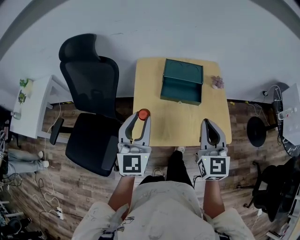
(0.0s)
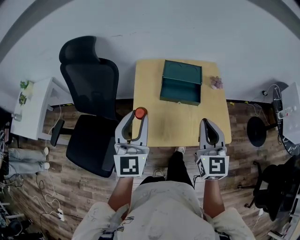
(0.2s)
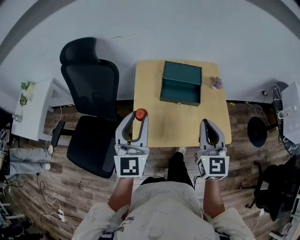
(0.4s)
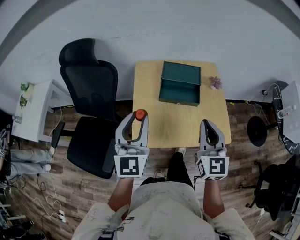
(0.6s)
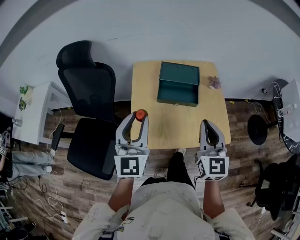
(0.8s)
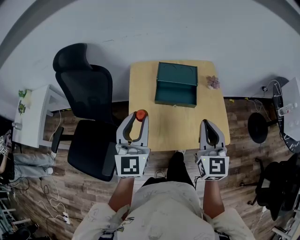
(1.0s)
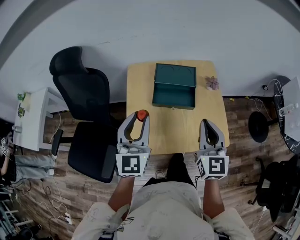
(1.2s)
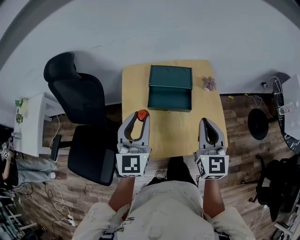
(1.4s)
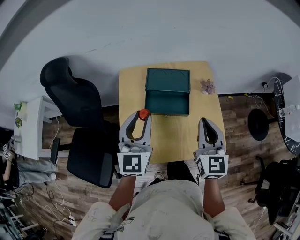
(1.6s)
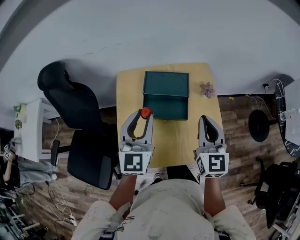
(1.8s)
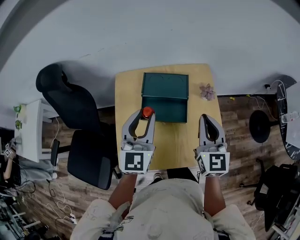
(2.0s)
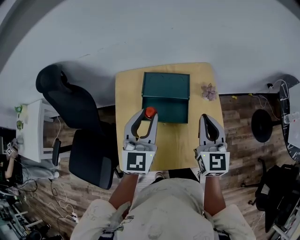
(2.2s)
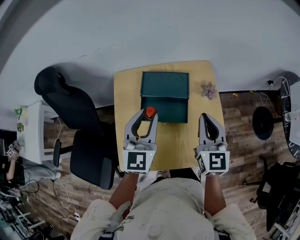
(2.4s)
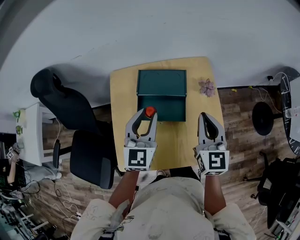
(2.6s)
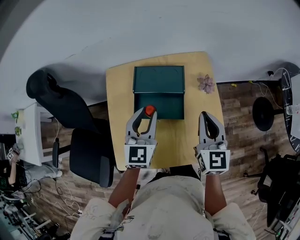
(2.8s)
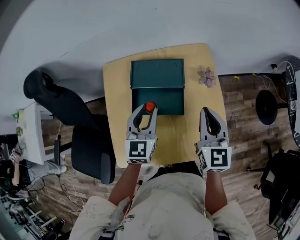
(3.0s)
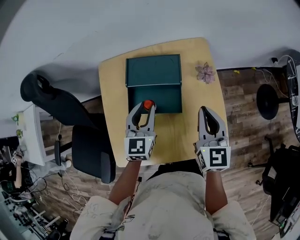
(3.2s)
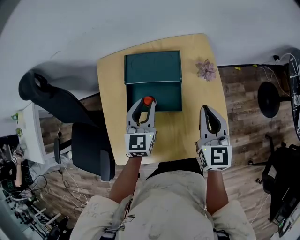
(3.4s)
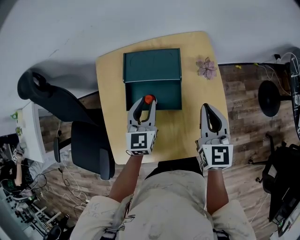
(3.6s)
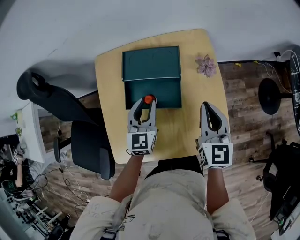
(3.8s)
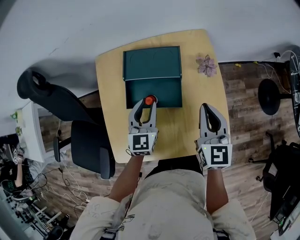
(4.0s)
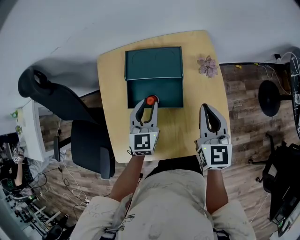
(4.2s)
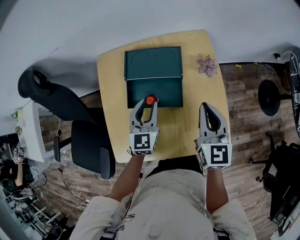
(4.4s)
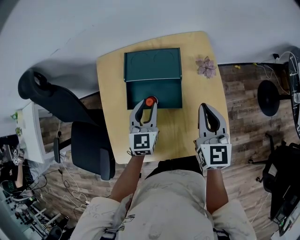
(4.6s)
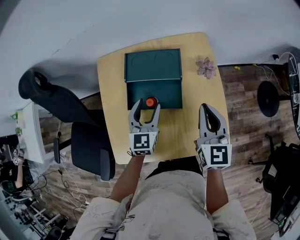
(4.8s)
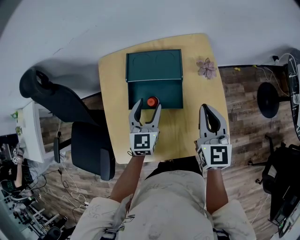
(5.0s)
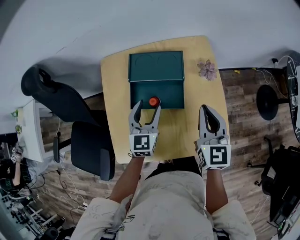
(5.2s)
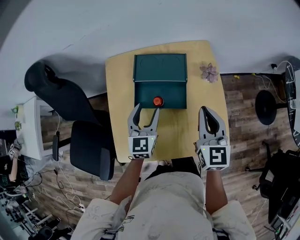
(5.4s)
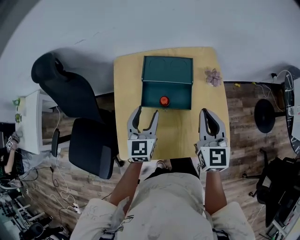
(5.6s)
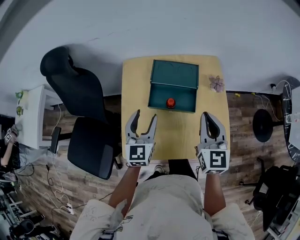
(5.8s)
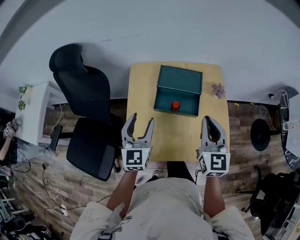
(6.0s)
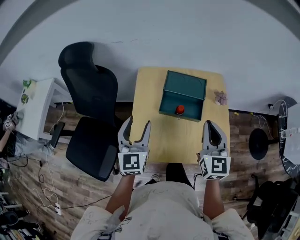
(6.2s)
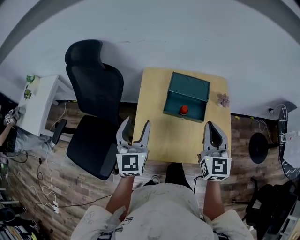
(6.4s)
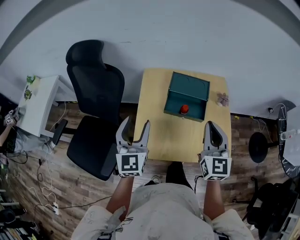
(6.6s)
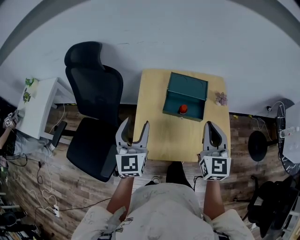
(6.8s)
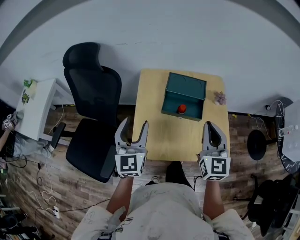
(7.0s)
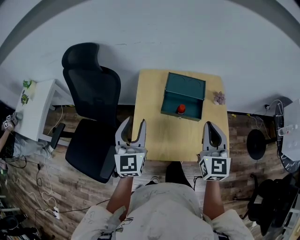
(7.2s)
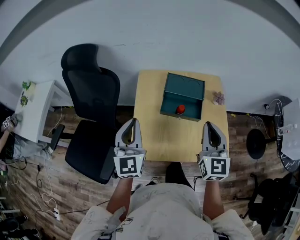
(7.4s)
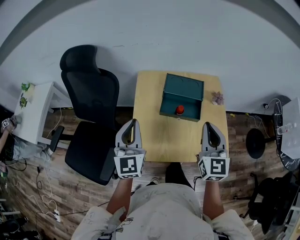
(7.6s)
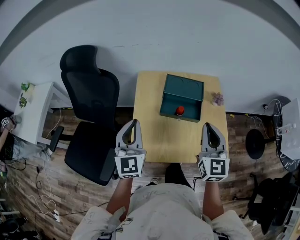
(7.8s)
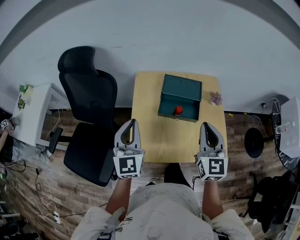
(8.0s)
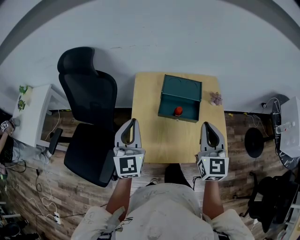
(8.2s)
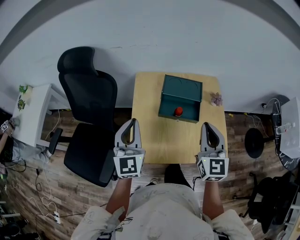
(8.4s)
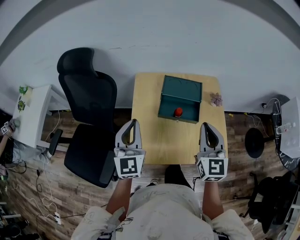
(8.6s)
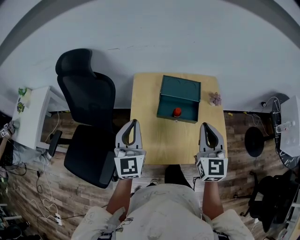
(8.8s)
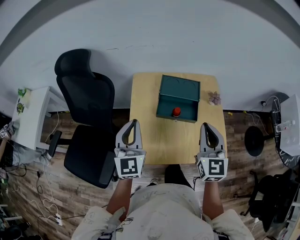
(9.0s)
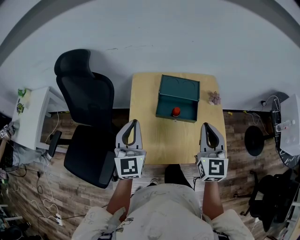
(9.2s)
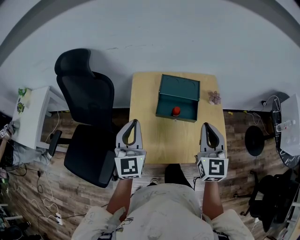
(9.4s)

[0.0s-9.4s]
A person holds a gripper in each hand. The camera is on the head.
0.0s to 1.6s: Both grippers travel together forward and to the right, roughly 15 cm.
1.6s to 3.2s: The grippers both shift downward, forward and to the right by roughly 15 cm.
3.2s to 4.8s: The left gripper opens.
4.8s to 6.2s: The right gripper shifts approximately 15 cm upward, to the left and backward. The left gripper goes roughly 25 cm to the left, upward and backward, and changes its angle by some 20 degrees.
6.2s to 7.8s: The left gripper closes up.
7.8s to 9.4s: There are only small adjustments of the grippers.

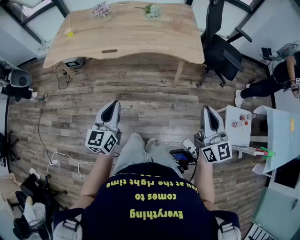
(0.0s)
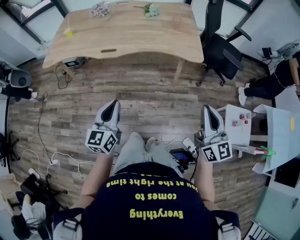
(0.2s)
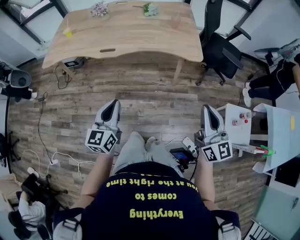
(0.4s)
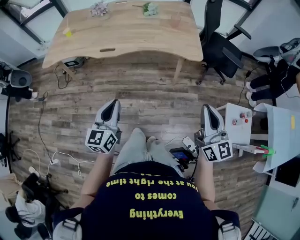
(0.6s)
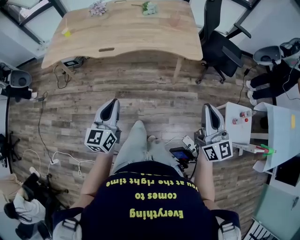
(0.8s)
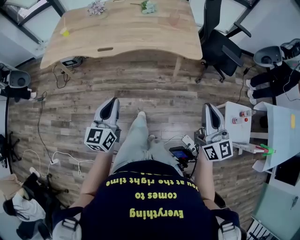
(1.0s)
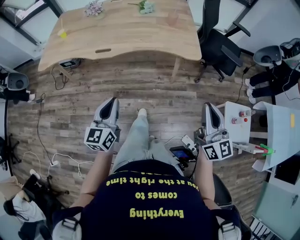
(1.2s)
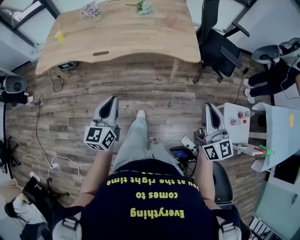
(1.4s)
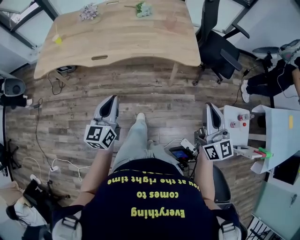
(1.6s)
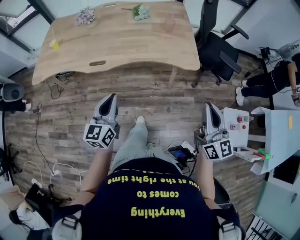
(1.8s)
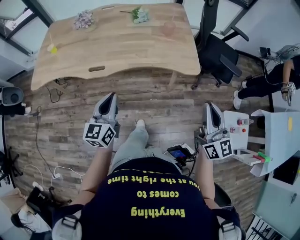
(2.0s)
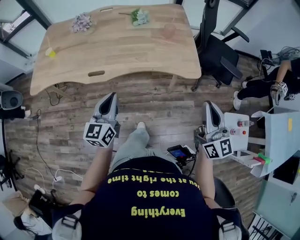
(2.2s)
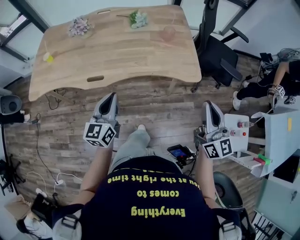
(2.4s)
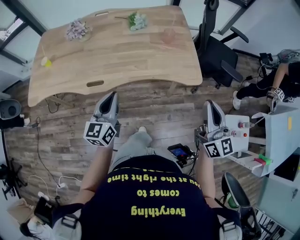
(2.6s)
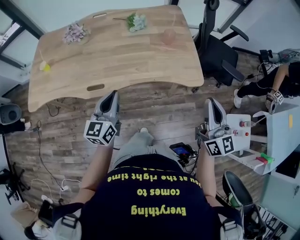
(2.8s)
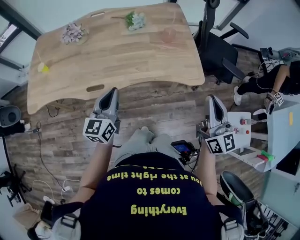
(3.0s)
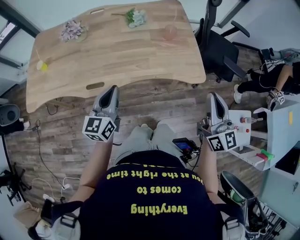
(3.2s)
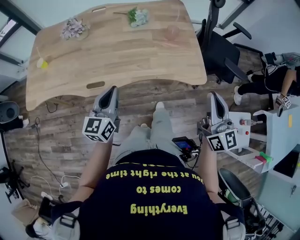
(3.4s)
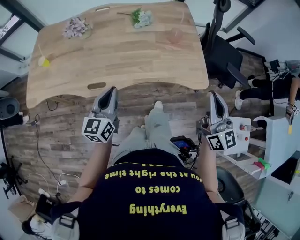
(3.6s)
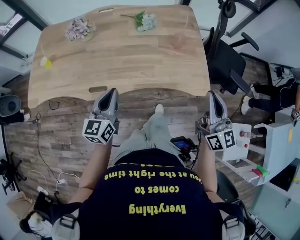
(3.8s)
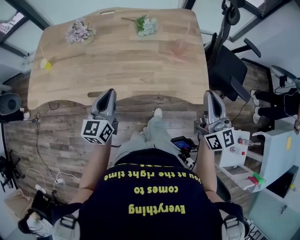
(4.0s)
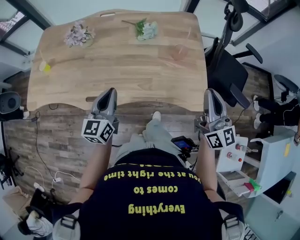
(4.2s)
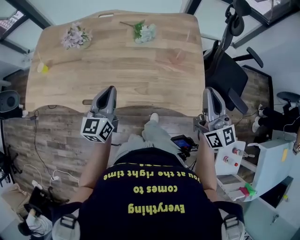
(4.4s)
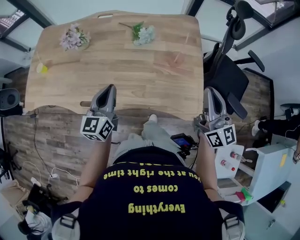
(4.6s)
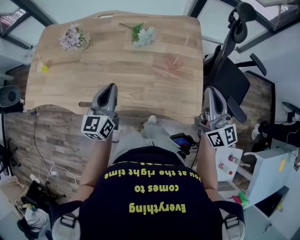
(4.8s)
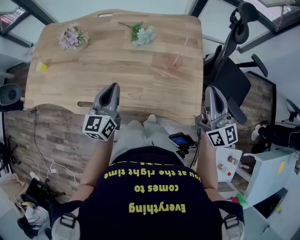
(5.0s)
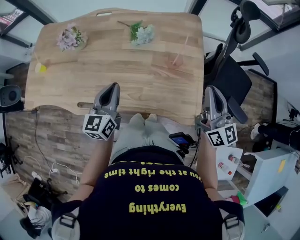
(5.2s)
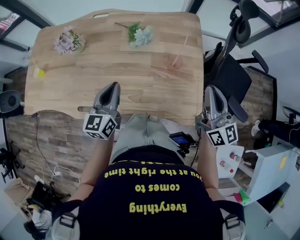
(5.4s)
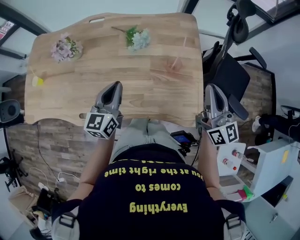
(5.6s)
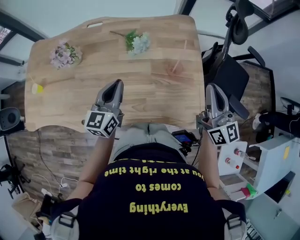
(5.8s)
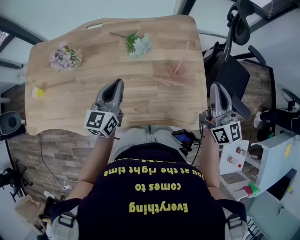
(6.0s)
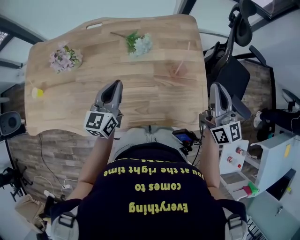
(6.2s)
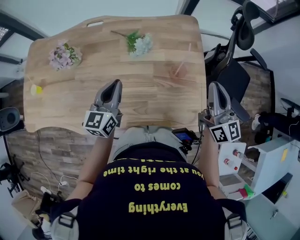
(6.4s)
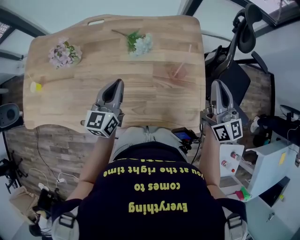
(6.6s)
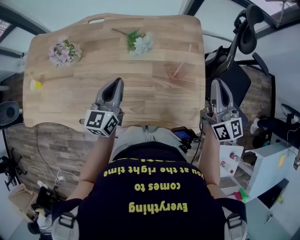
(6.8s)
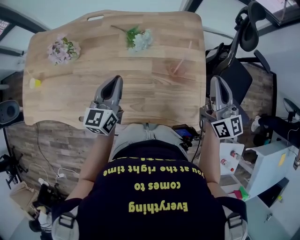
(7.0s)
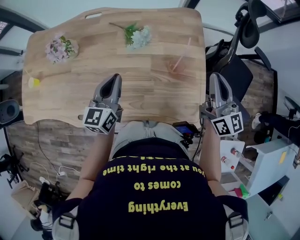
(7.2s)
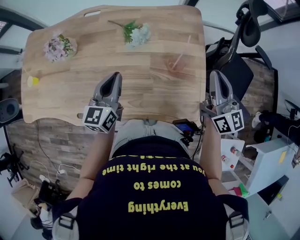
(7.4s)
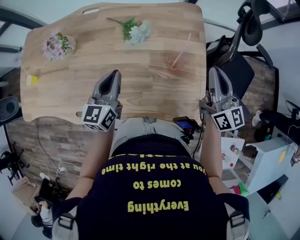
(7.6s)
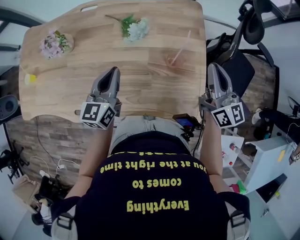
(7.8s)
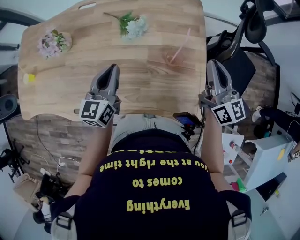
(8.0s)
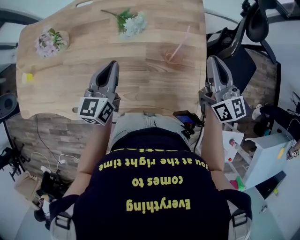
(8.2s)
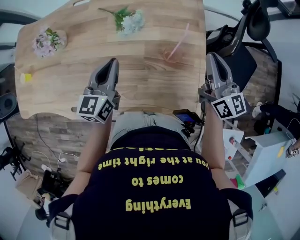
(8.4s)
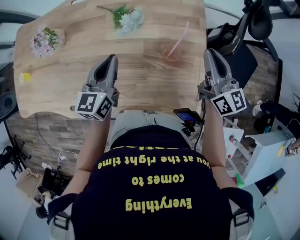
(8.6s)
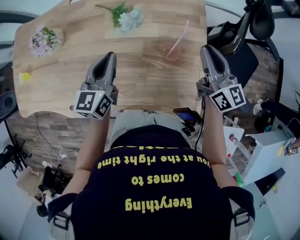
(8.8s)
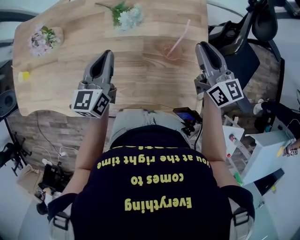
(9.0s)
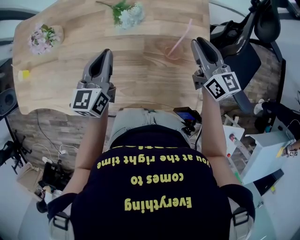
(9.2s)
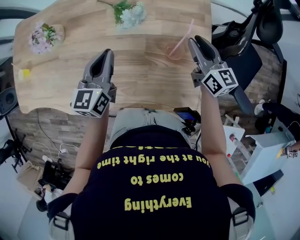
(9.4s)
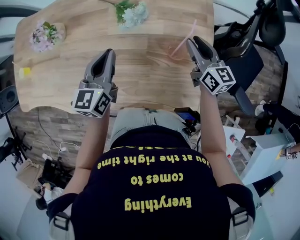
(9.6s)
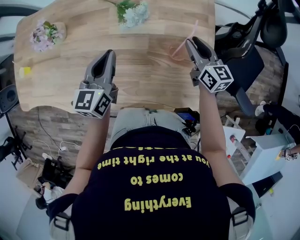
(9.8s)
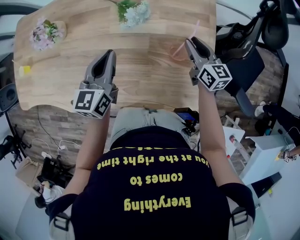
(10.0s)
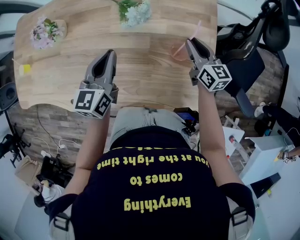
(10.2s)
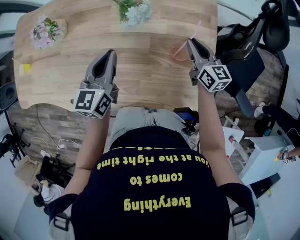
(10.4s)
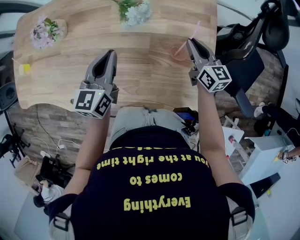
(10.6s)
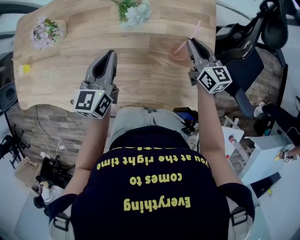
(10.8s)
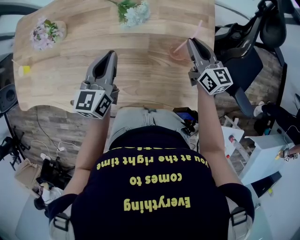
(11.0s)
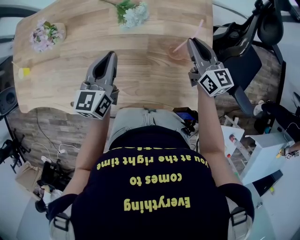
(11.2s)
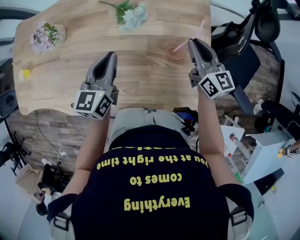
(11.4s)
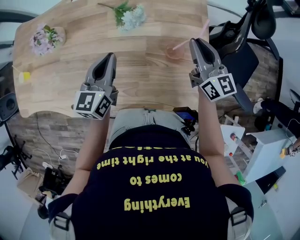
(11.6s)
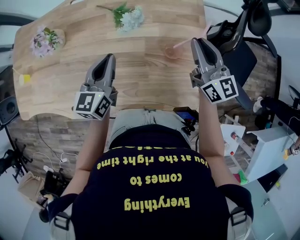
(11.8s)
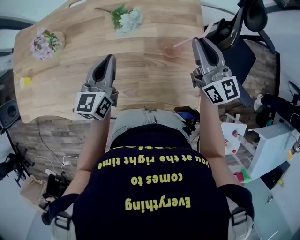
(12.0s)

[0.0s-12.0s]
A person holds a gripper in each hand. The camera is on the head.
0.0s to 1.6s: The two grippers go roughly 10 cm forward.
1.6s to 3.0s: The two grippers go roughly 20 cm forward.
3.0s to 4.4s: The left gripper heads forward, covering about 15 cm; the right gripper is displaced forward by approximately 20 cm.
4.4s to 6.0s: The grippers both shift forward by approximately 15 cm.
6.0s to 7.6s: The right gripper shifts some 5 cm forward.
7.6s to 9.0s: The left gripper heads forward, covering about 5 cm, while the right gripper travels downward and forward by approximately 10 cm.
9.0s to 10.4s: The right gripper goes about 10 cm downward.
10.4s to 12.0s: The right gripper moves upward, some 15 cm, and rotates approximately 20 degrees.

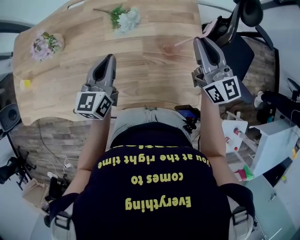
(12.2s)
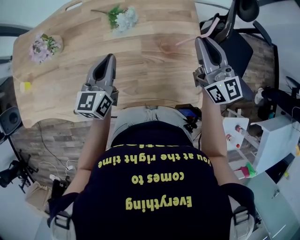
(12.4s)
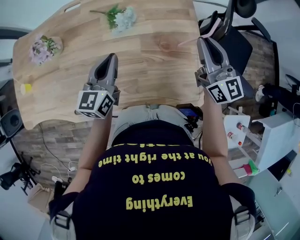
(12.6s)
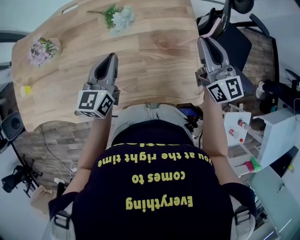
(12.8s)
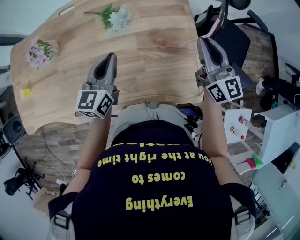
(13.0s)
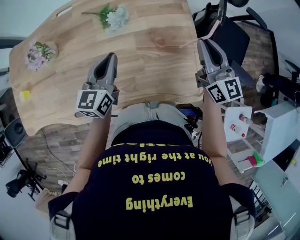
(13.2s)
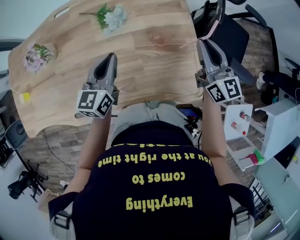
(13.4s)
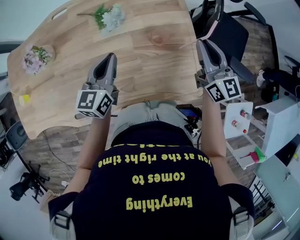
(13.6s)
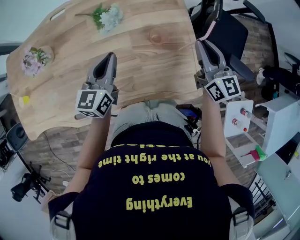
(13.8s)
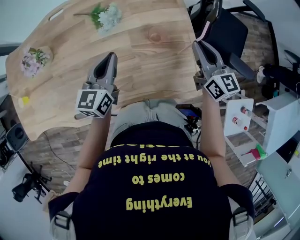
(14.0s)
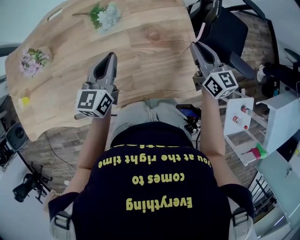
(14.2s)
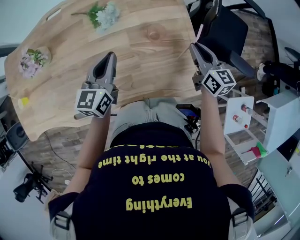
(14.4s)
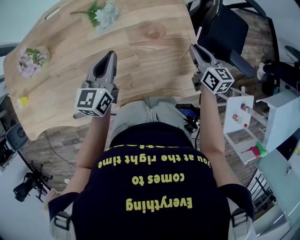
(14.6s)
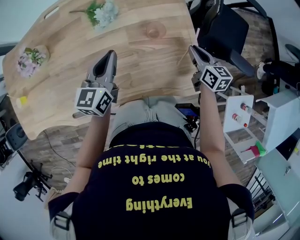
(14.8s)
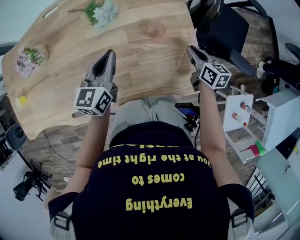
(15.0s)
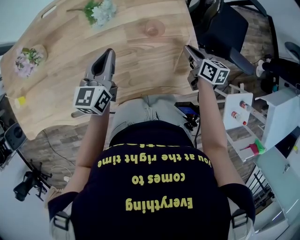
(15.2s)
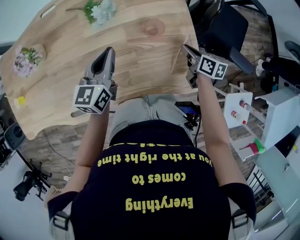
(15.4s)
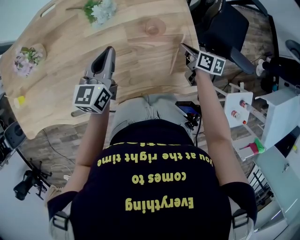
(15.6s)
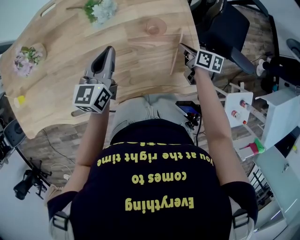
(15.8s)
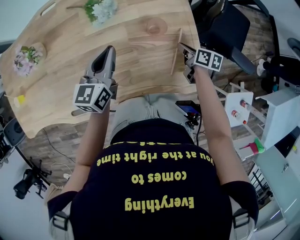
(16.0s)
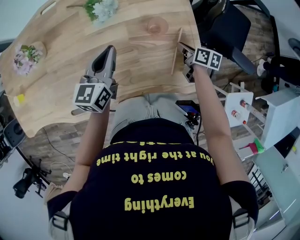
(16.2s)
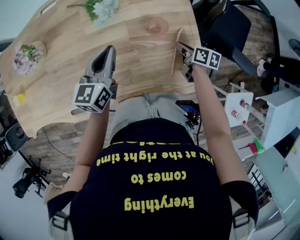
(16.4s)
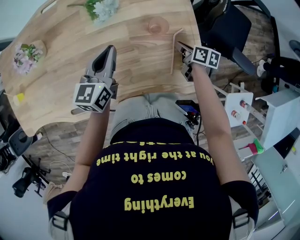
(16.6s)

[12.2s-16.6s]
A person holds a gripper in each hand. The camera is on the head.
12.2s to 13.6s: The right gripper is displaced to the right by roughly 5 cm.
13.6s to 15.2s: The right gripper travels downward by roughly 20 cm, and tips its fingers downward by some 30 degrees.
15.2s to 16.6s: The right gripper is displaced downward by about 5 cm.
